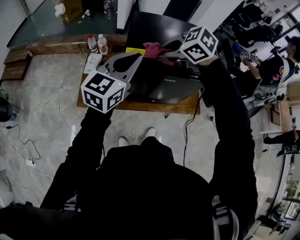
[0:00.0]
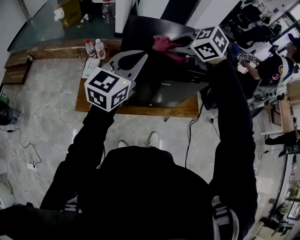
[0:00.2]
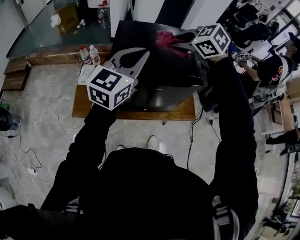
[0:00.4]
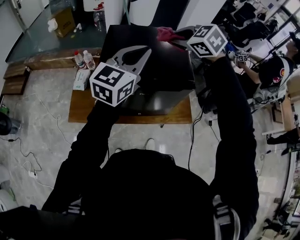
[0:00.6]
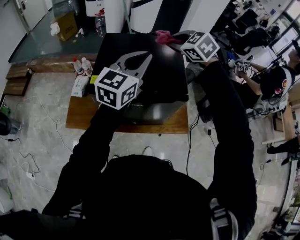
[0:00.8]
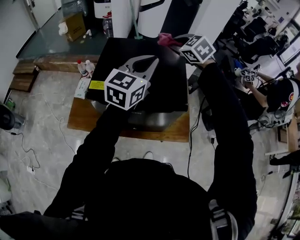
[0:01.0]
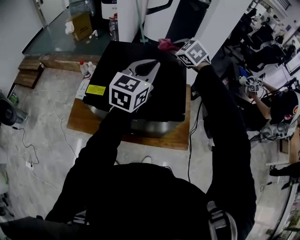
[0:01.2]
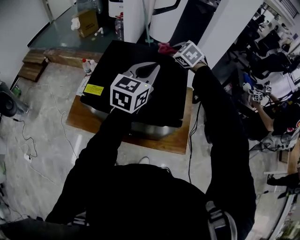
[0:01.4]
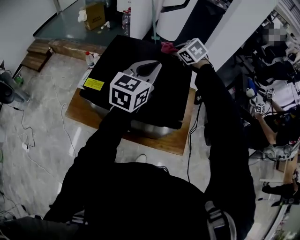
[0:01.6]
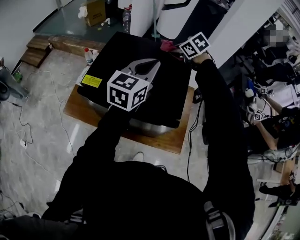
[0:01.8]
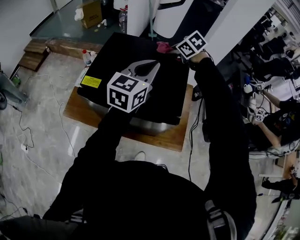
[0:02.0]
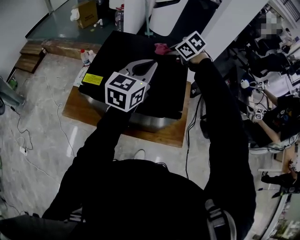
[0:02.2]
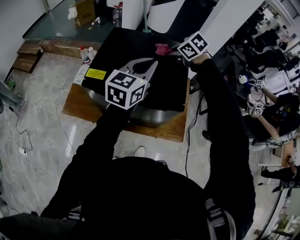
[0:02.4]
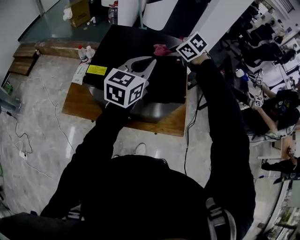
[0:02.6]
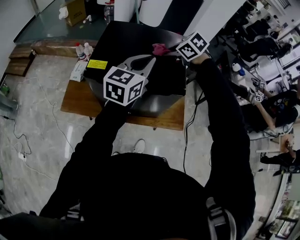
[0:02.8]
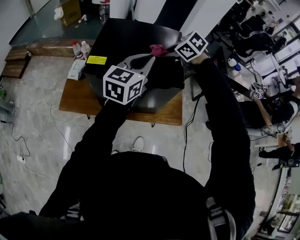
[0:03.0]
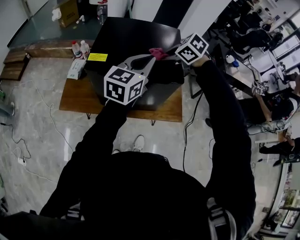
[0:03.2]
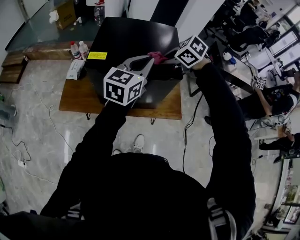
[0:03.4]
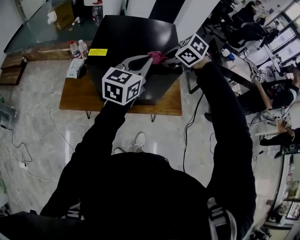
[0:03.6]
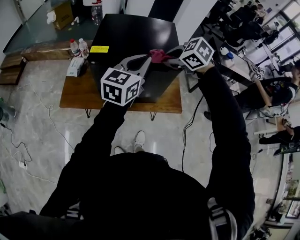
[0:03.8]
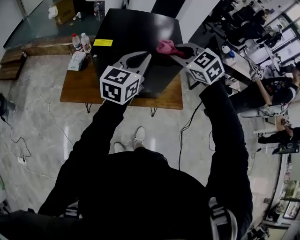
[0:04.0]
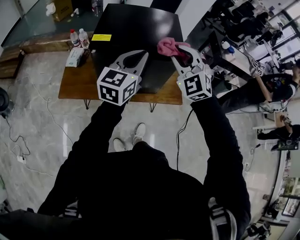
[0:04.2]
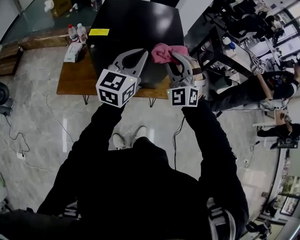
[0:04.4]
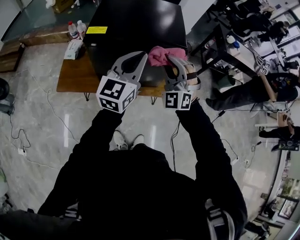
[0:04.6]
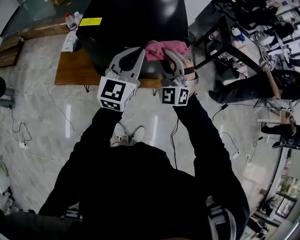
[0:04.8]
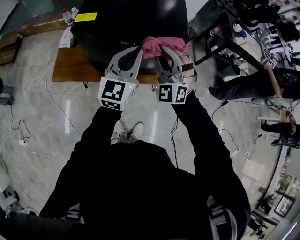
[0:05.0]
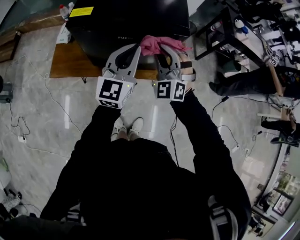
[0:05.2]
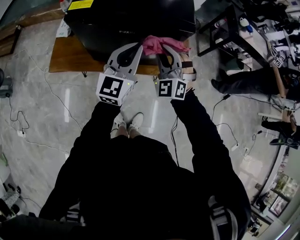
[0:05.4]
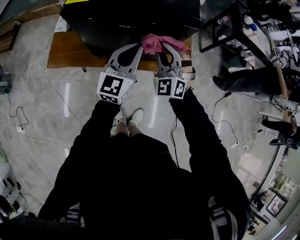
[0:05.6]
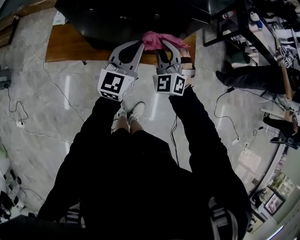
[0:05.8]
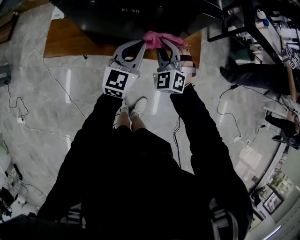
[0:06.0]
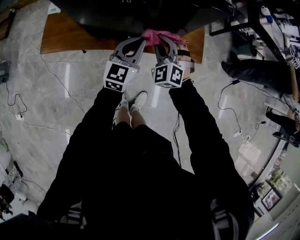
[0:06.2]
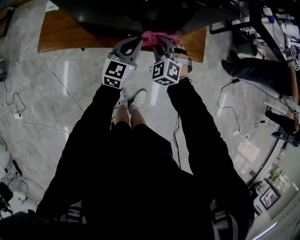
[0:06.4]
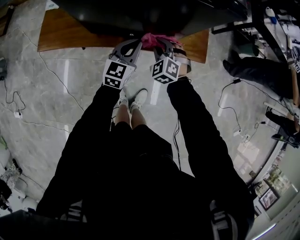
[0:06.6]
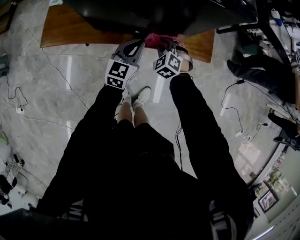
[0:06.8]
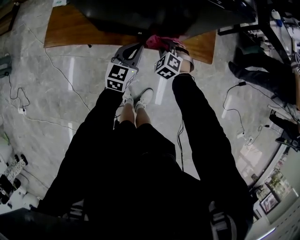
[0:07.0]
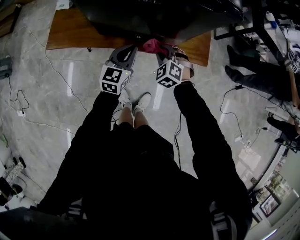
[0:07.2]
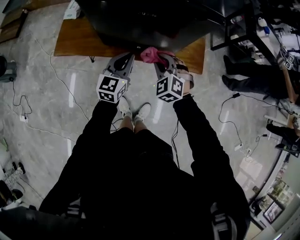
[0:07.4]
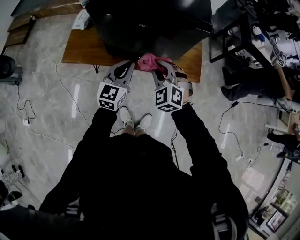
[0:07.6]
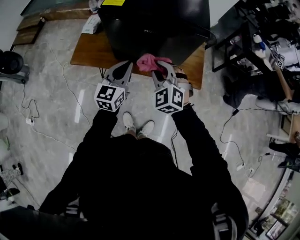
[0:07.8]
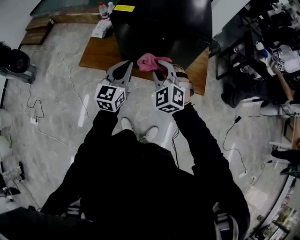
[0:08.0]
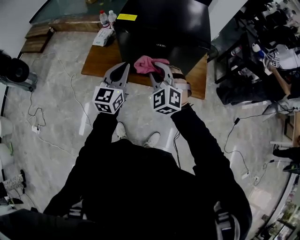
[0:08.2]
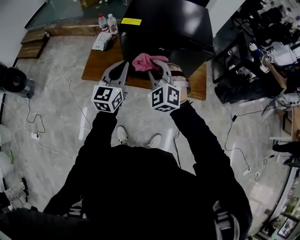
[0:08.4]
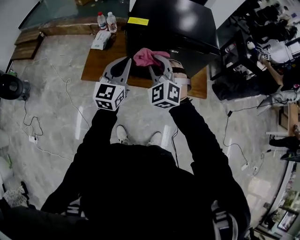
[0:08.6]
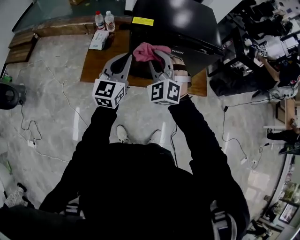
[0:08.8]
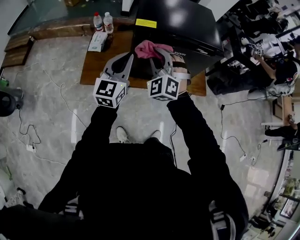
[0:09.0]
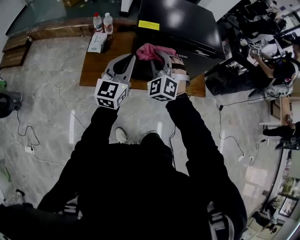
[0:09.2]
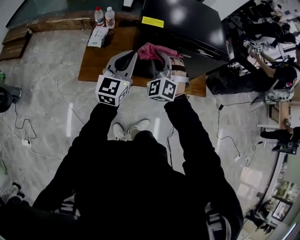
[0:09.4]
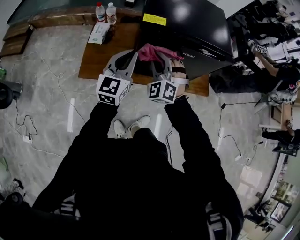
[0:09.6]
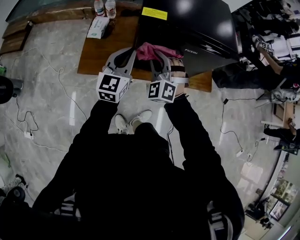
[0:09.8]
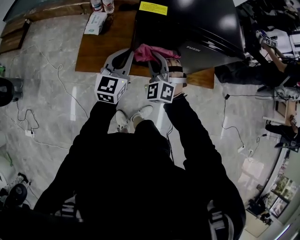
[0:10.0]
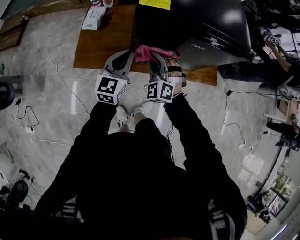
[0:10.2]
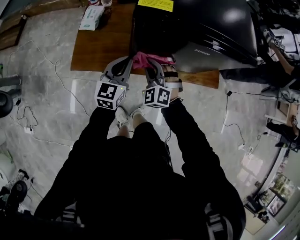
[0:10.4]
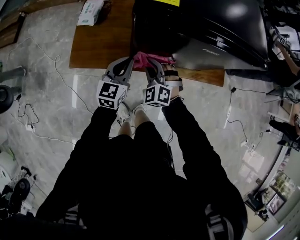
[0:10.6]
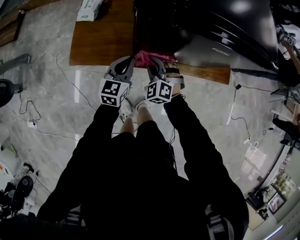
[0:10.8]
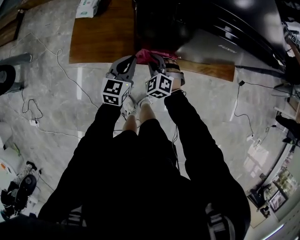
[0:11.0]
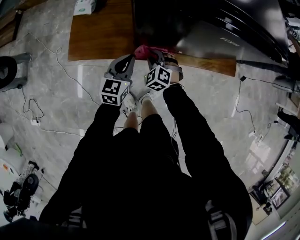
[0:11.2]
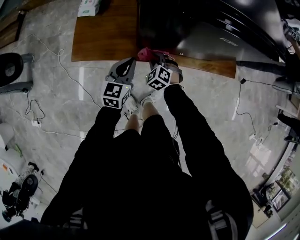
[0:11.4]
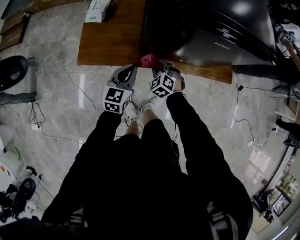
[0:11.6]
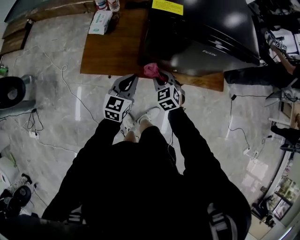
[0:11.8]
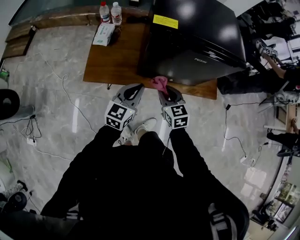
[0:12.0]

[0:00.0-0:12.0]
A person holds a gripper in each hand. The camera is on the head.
0:00.0 to 0:01.6: The right gripper goes about 40 cm forward and to the right, while the left gripper heads to the right and forward, covering roughly 30 cm.
0:01.6 to 0:03.0: The right gripper shifts about 20 cm backward. The left gripper shifts about 15 cm backward and to the left.
0:03.0 to 0:04.4: The right gripper goes roughly 20 cm backward, and angles its fingers upward, by roughly 50 degrees, while the left gripper shifts approximately 15 cm backward and to the left.
0:04.4 to 0:06.0: Both grippers move downward, approximately 30 cm. The right gripper rotates approximately 20 degrees.
0:06.0 to 0:07.6: The right gripper heads backward, covering some 10 cm, and reaches approximately 20 cm downward, then returns; the left gripper is displaced backward and to the left by about 10 cm, and goes downward and returns, approximately 15 cm each way.
0:07.6 to 0:09.0: Both grippers move to the left and upward, roughly 25 cm. The right gripper changes its angle by about 20 degrees.
0:09.0 to 0:10.4: Both grippers move downward, some 25 cm.
0:10.4 to 0:12.0: Both grippers move backward, approximately 10 cm. The right gripper moves roughly 20 cm downward and comes back, and twists approximately 50 degrees clockwise, seen from behind. Meanwhile the left gripper goes downward and returns, approximately 15 cm each way.

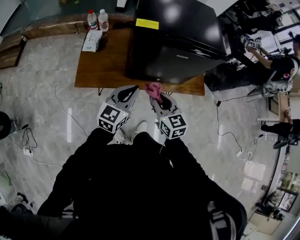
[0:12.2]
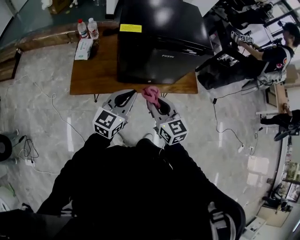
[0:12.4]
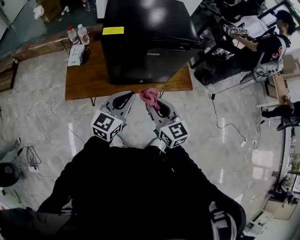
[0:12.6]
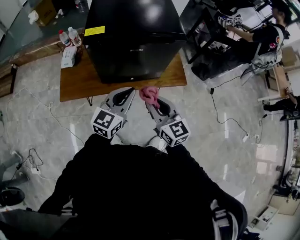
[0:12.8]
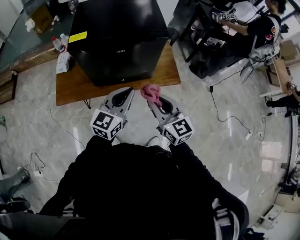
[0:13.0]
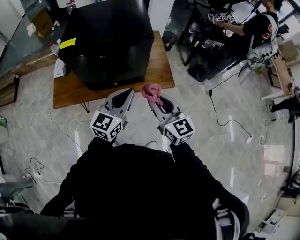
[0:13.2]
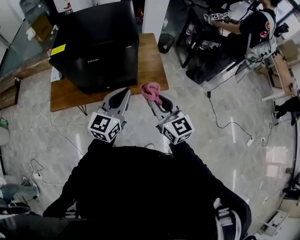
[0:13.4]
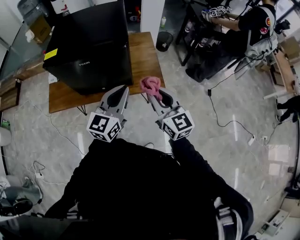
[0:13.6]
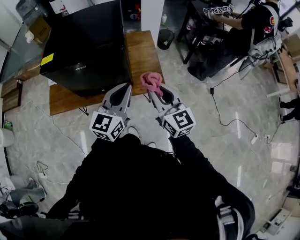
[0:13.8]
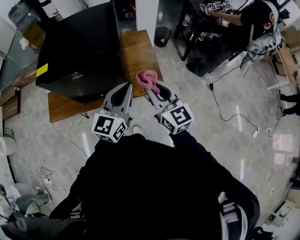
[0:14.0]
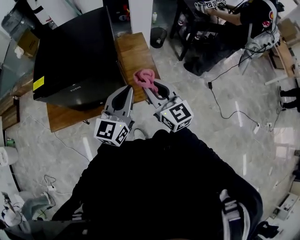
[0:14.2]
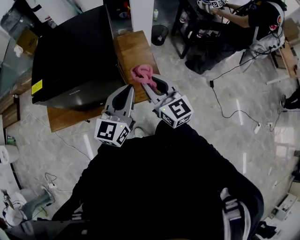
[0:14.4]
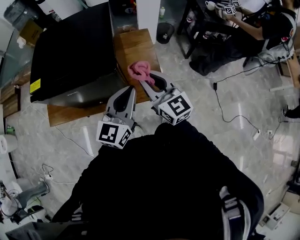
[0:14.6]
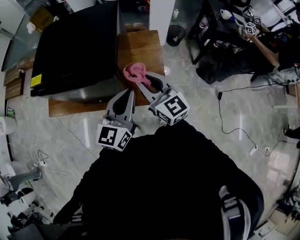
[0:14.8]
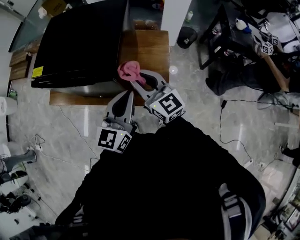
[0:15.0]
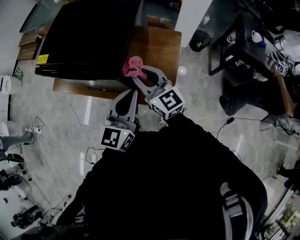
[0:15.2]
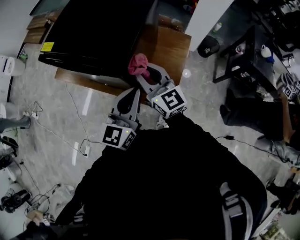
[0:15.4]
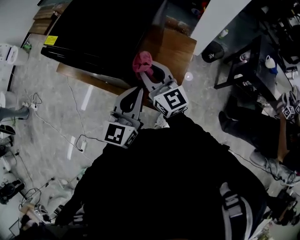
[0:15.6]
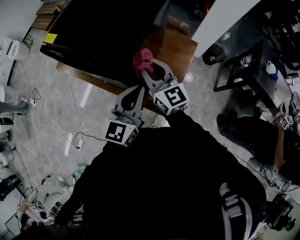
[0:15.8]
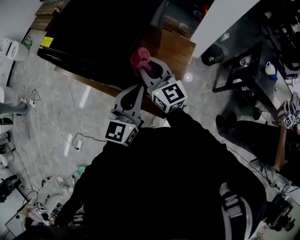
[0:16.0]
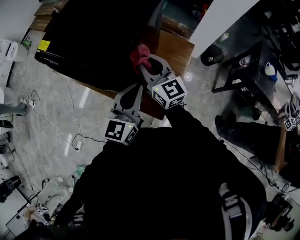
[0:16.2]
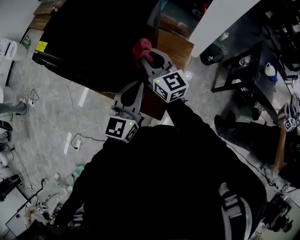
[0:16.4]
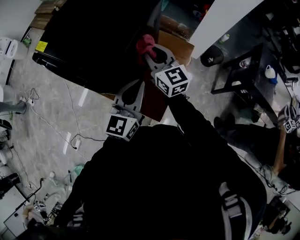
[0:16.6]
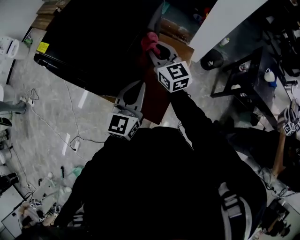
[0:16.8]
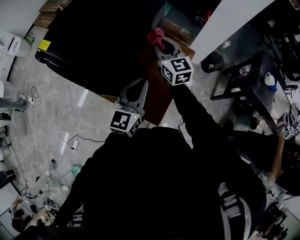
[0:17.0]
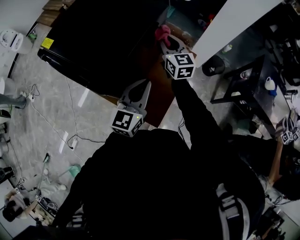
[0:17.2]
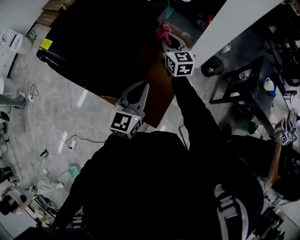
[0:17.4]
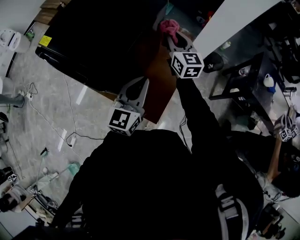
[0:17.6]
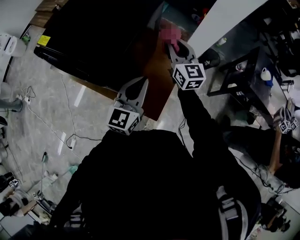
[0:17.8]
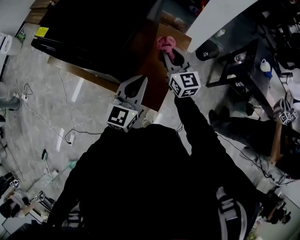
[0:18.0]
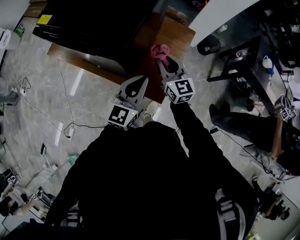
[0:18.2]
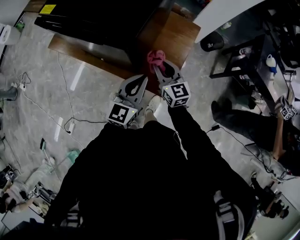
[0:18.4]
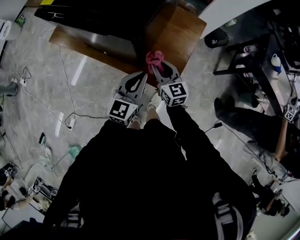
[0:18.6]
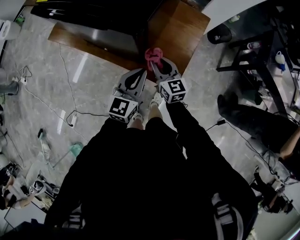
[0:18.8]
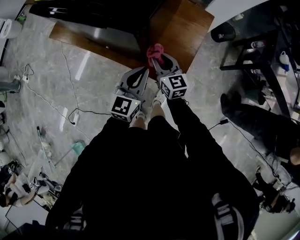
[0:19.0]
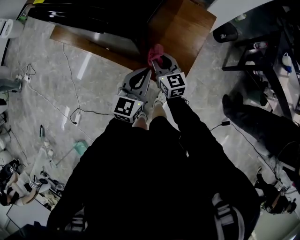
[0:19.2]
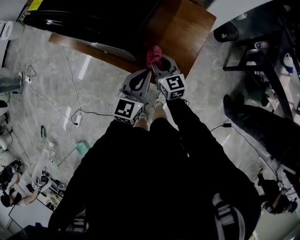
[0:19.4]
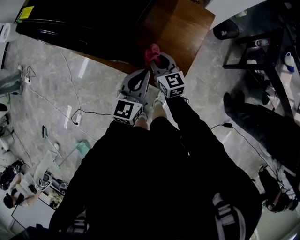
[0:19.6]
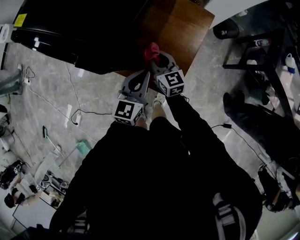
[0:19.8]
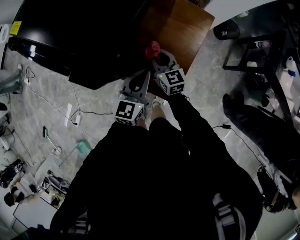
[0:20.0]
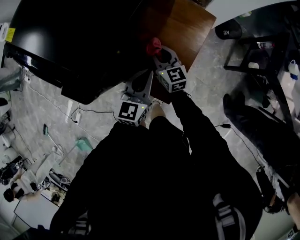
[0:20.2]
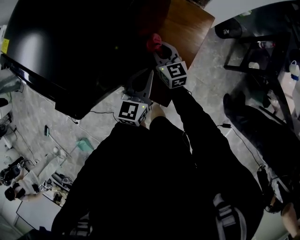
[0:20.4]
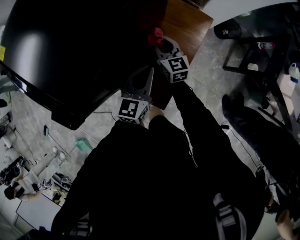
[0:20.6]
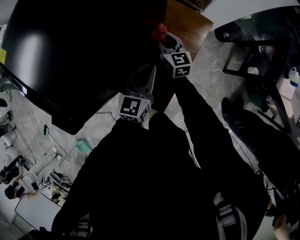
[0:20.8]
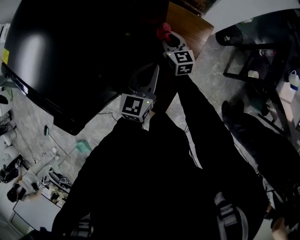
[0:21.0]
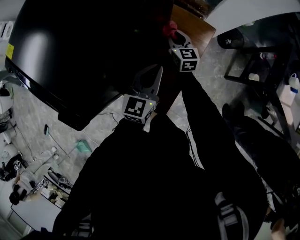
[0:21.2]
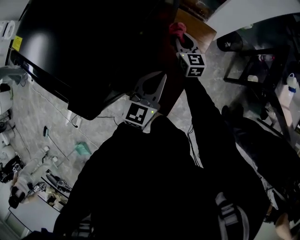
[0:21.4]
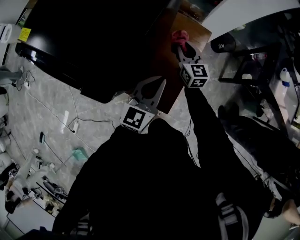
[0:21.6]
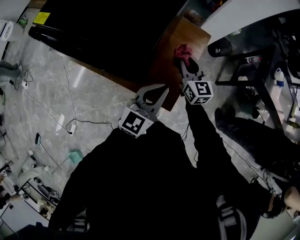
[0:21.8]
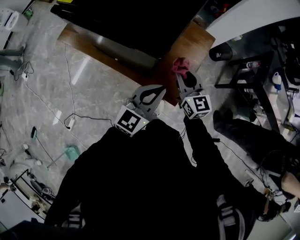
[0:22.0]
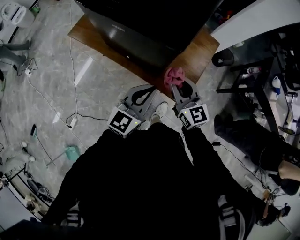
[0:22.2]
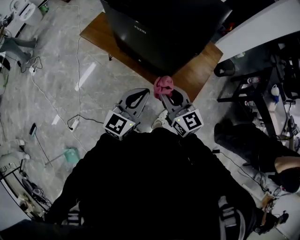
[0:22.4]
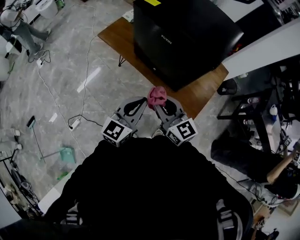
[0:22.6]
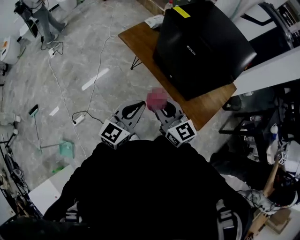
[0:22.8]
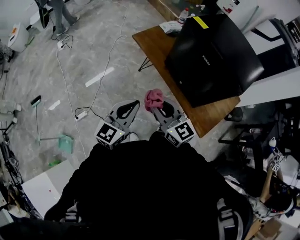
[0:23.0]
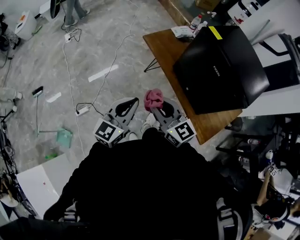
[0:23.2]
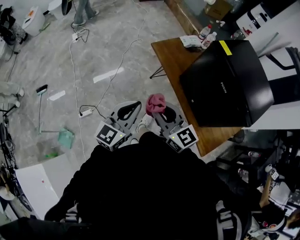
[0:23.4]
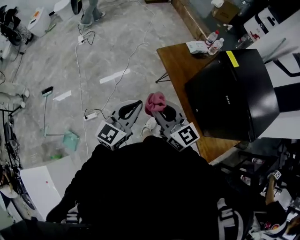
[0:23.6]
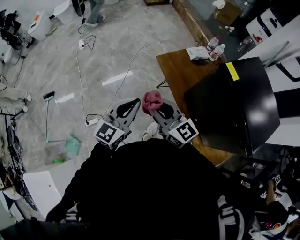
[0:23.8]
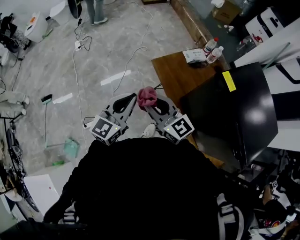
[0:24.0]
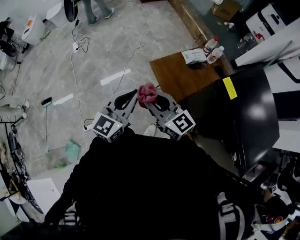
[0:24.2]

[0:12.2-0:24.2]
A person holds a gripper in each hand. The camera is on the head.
0:12.2 to 0:13.8: The two grippers travel together, to the right, approximately 40 cm. The right gripper turns by roughly 20 degrees.
0:13.8 to 0:15.2: The left gripper changes place by approximately 20 cm, and turns by about 30 degrees. The right gripper ends up roughly 25 cm from where it was, and changes its angle by some 30 degrees.
0:15.2 to 0:16.6: The two grippers go roughly 15 cm forward and to the right.
0:16.6 to 0:18.2: The two grippers go approximately 10 cm backward and downward.
0:18.2 to 0:19.8: The left gripper is displaced downward by some 15 cm, while the right gripper shifts about 20 cm downward and to the left.
0:19.8 to 0:21.2: Both grippers travel together forward and to the right, roughly 20 cm.
0:21.2 to 0:22.6: The two grippers travel together, backward and to the left, some 50 cm. The right gripper travels upward by about 25 cm, and turns by approximately 30 degrees.
0:22.6 to 0:24.2: The two grippers travel together, roughly 40 cm. The right gripper changes its angle by roughly 30 degrees. Meanwhile the left gripper rotates approximately 30 degrees.
